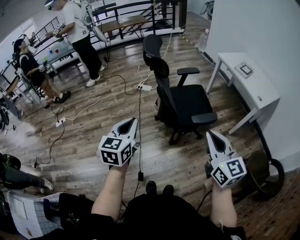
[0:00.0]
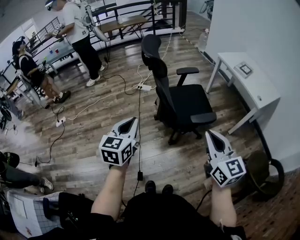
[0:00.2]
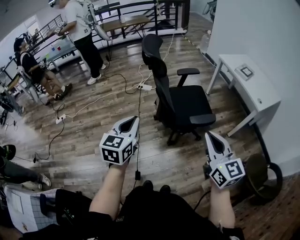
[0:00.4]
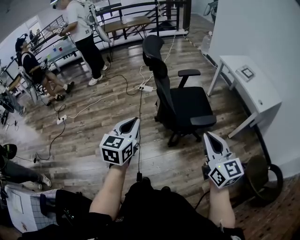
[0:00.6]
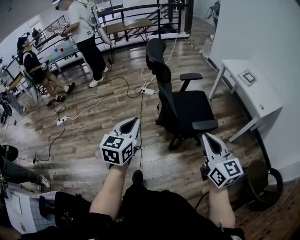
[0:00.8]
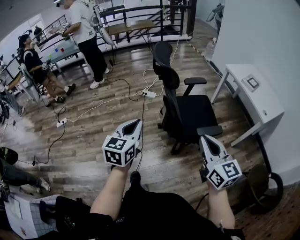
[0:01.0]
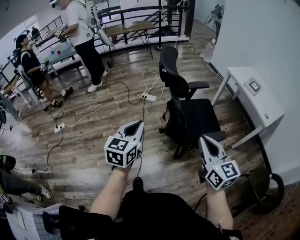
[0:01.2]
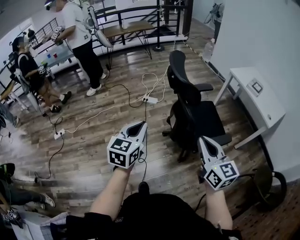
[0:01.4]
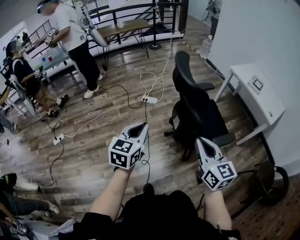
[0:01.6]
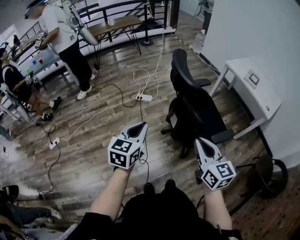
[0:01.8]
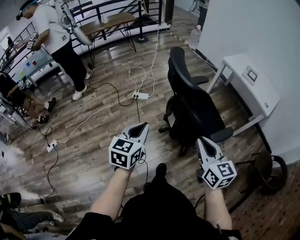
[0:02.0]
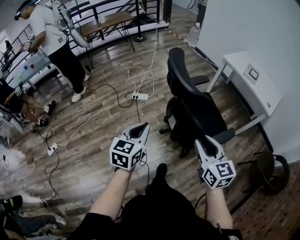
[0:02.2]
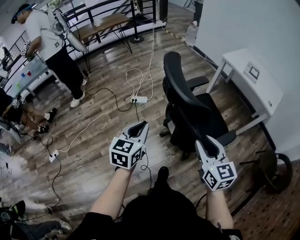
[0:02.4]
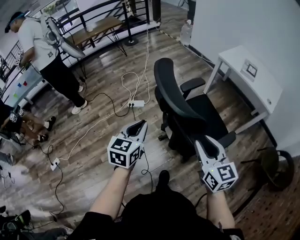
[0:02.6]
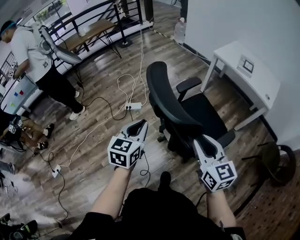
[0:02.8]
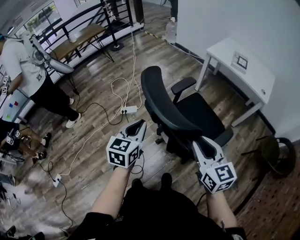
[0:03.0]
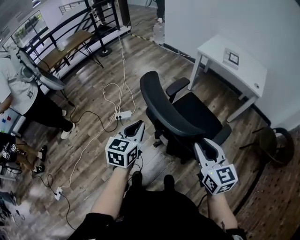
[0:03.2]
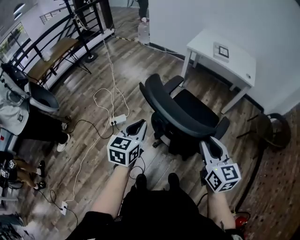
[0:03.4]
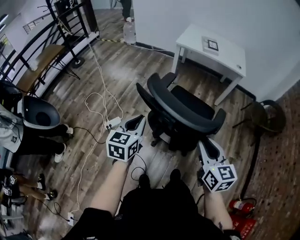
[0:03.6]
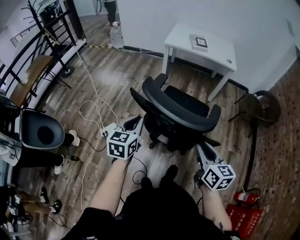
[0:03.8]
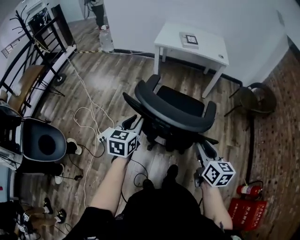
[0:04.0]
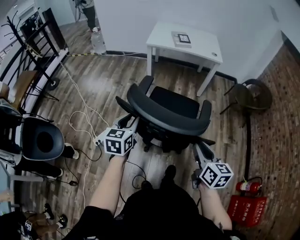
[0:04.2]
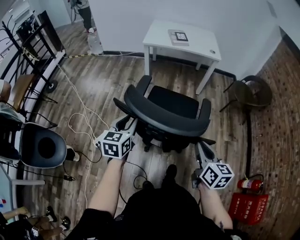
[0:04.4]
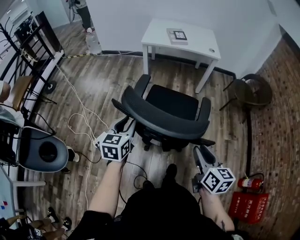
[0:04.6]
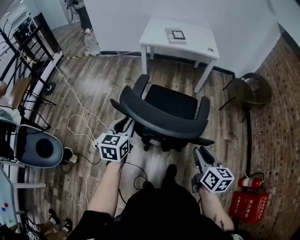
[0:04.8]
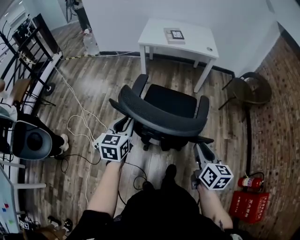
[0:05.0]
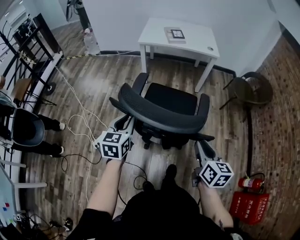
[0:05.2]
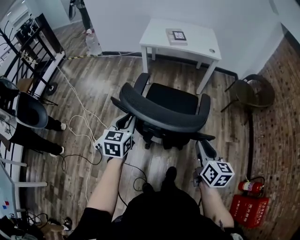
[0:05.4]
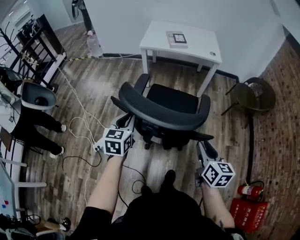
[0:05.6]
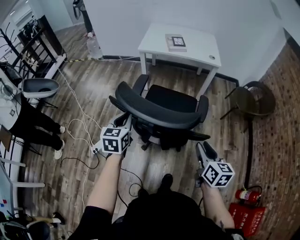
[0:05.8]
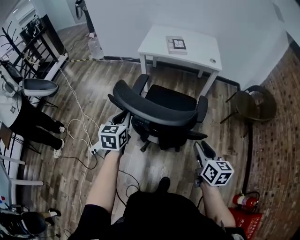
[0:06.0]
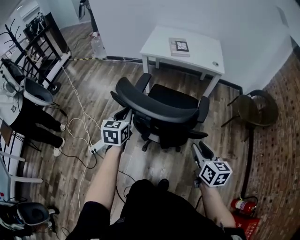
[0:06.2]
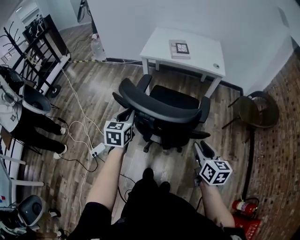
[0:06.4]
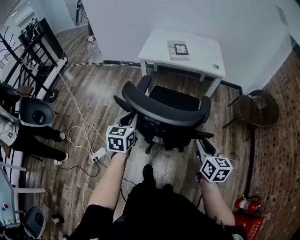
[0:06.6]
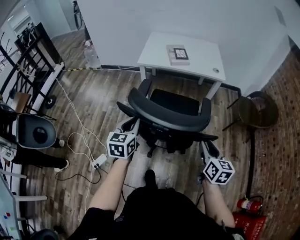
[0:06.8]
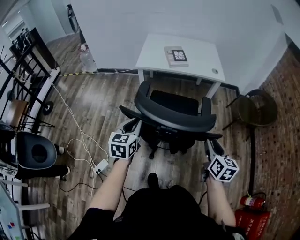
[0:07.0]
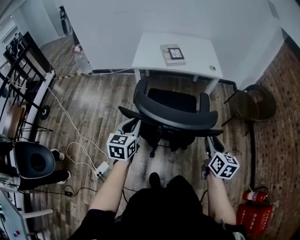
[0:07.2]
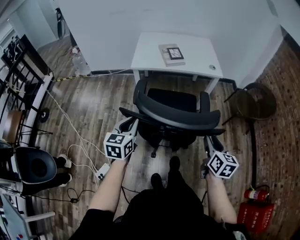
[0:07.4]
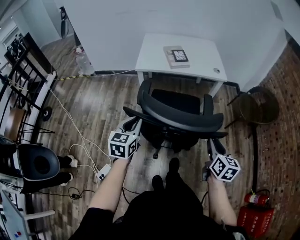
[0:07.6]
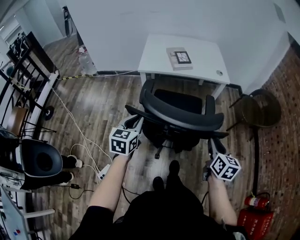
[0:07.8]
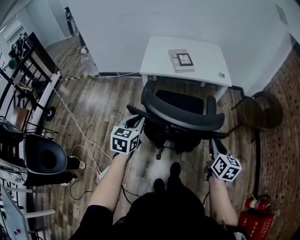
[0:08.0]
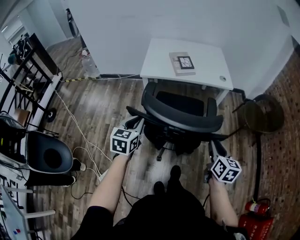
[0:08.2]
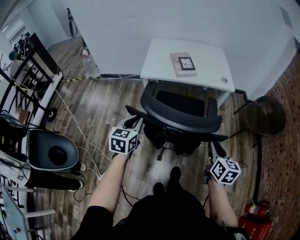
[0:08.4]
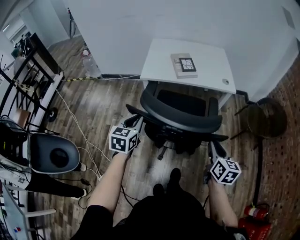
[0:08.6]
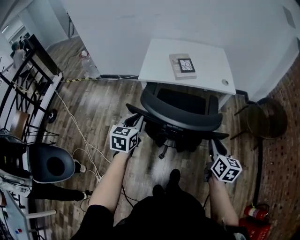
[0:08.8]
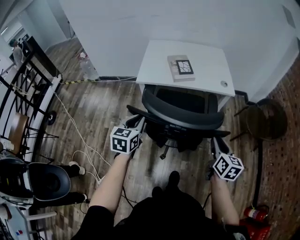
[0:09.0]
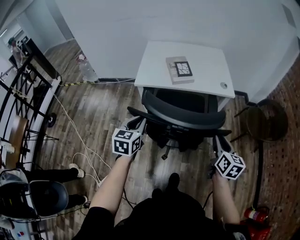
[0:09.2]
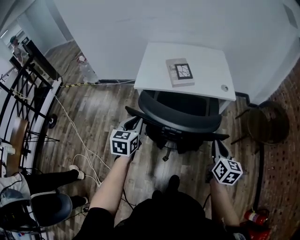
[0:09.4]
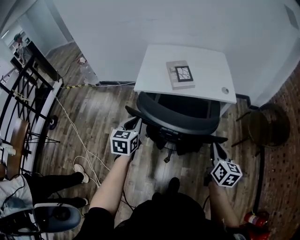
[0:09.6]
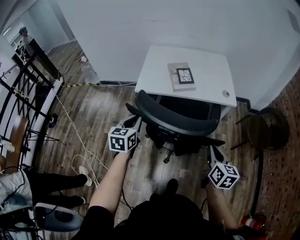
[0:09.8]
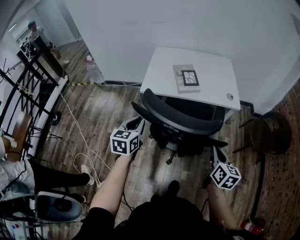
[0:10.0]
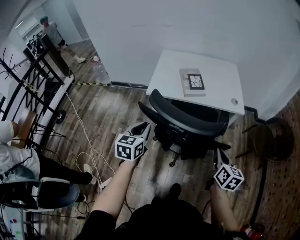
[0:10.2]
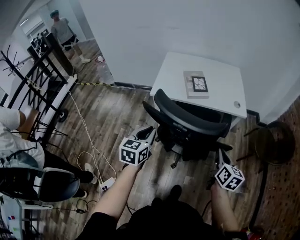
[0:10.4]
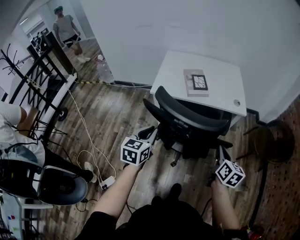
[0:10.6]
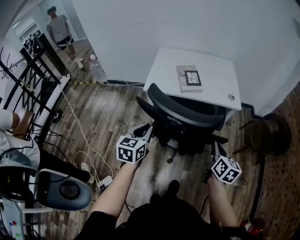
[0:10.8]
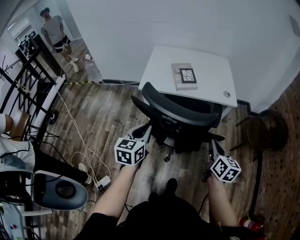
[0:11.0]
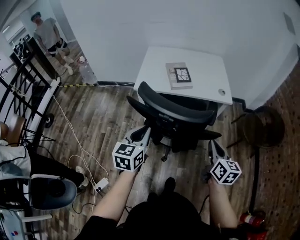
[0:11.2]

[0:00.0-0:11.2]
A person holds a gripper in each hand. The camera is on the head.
0:00.0 to 0:01.6: The left gripper heads forward and to the left, covering about 25 cm. Meanwhile the right gripper goes about 30 cm to the left and forward.
0:01.6 to 0:03.2: Both grippers move forward, approximately 25 cm. The left gripper turns by roughly 20 degrees. Meanwhile the right gripper swivels some 30 degrees, and opens its fingers.
0:03.2 to 0:04.8: The right gripper heads downward, covering approximately 10 cm, and turns by approximately 50 degrees. The left gripper ends up roughly 15 cm from where it was, and rotates approximately 30 degrees.
0:04.8 to 0:06.4: The right gripper moves forward and to the right, some 20 cm. Meanwhile the left gripper travels forward by approximately 20 cm.
0:06.4 to 0:08.0: The right gripper travels forward by approximately 15 cm; the left gripper shifts about 20 cm forward and to the left.
0:08.0 to 0:09.6: Both grippers travel together forward, approximately 20 cm. The right gripper closes its fingers.
0:09.6 to 0:11.2: The left gripper shifts roughly 10 cm backward and to the right.

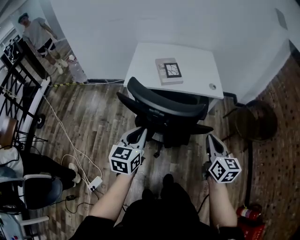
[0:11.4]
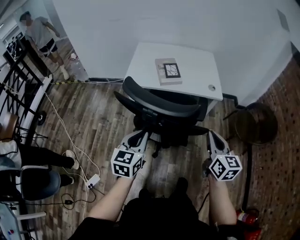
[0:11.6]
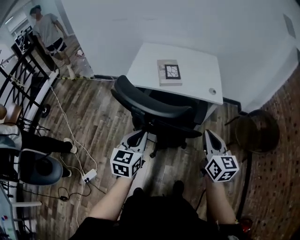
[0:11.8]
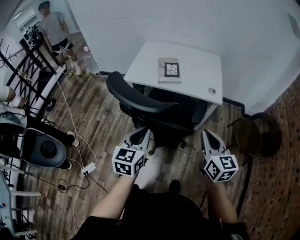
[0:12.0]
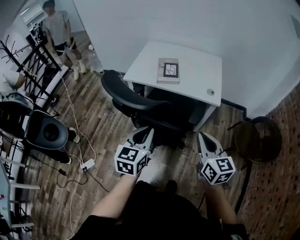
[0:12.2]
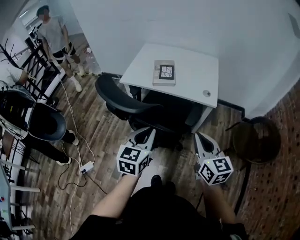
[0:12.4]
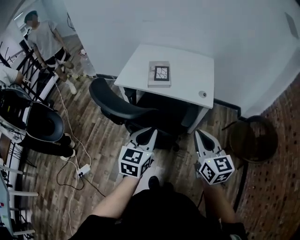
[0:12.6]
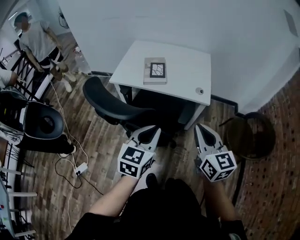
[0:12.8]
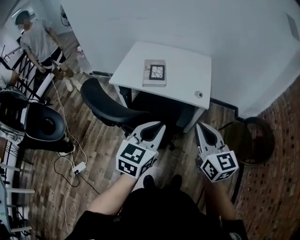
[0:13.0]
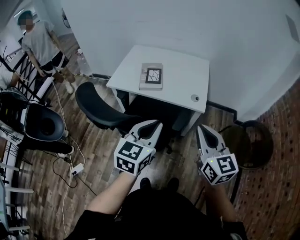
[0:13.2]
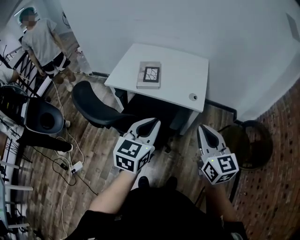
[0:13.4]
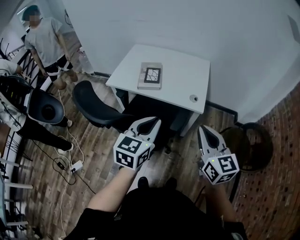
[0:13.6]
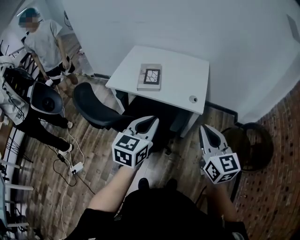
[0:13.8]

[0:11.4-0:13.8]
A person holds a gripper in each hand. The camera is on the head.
0:11.4 to 0:12.6: The left gripper is displaced to the right by roughly 25 cm; the right gripper goes about 15 cm to the right, and swivels approximately 20 degrees.
0:12.6 to 0:13.8: Both grippers move to the right and forward, some 10 cm.

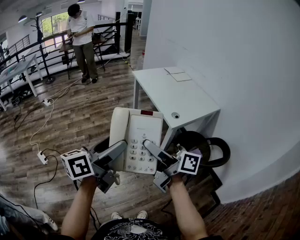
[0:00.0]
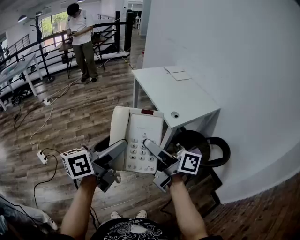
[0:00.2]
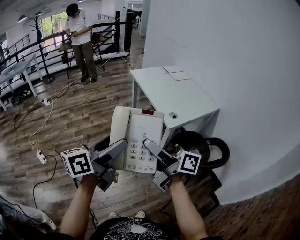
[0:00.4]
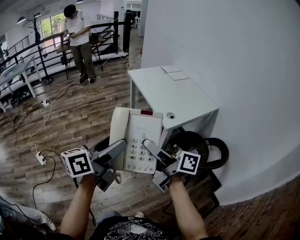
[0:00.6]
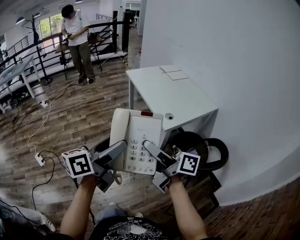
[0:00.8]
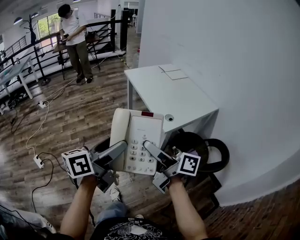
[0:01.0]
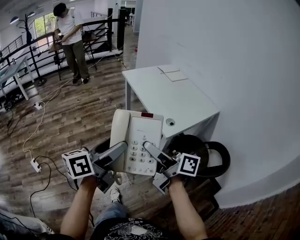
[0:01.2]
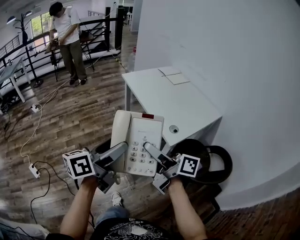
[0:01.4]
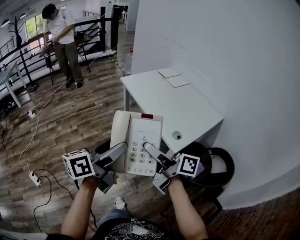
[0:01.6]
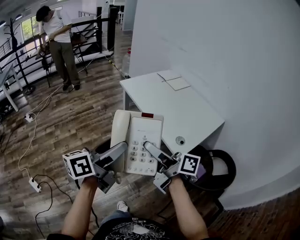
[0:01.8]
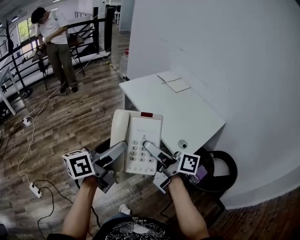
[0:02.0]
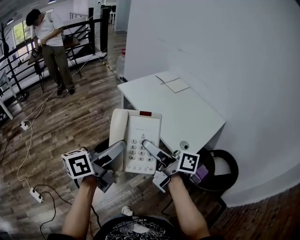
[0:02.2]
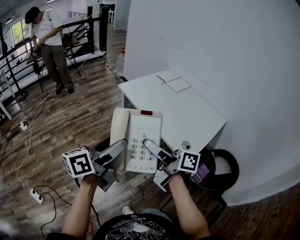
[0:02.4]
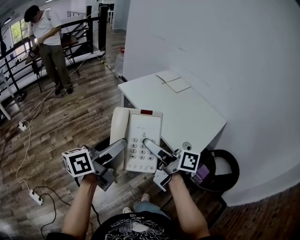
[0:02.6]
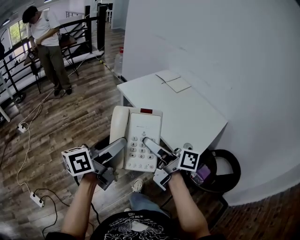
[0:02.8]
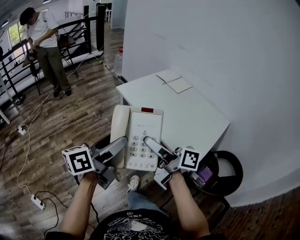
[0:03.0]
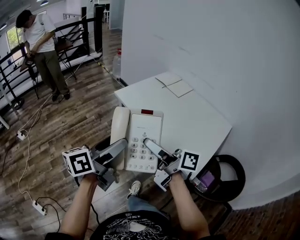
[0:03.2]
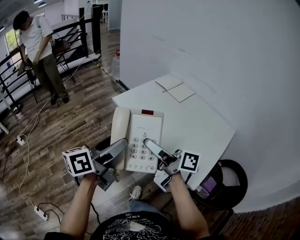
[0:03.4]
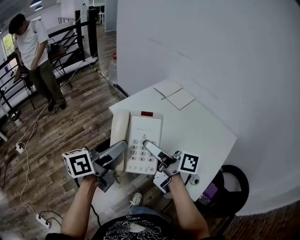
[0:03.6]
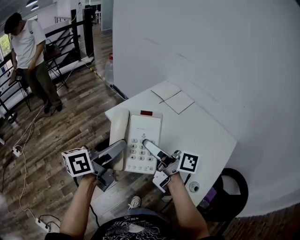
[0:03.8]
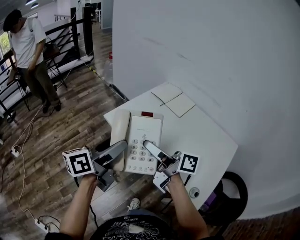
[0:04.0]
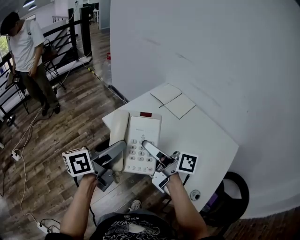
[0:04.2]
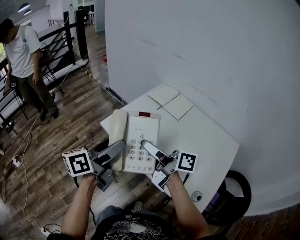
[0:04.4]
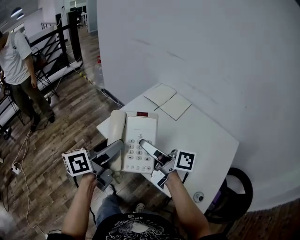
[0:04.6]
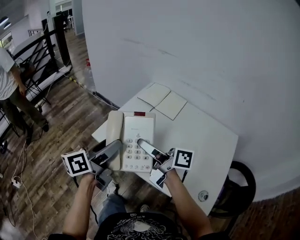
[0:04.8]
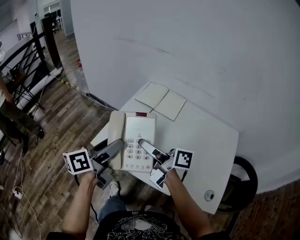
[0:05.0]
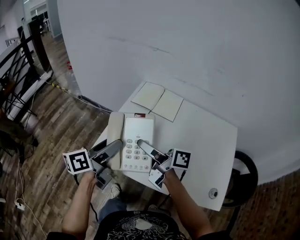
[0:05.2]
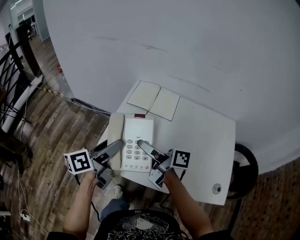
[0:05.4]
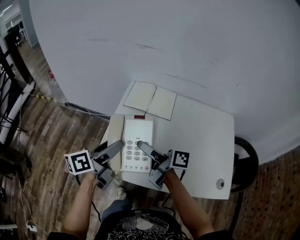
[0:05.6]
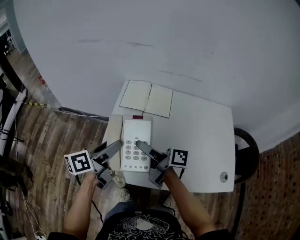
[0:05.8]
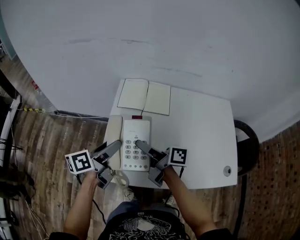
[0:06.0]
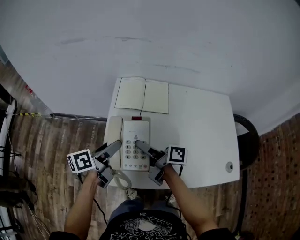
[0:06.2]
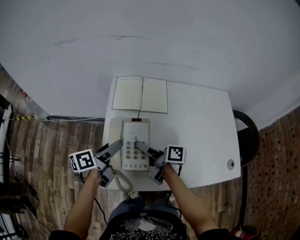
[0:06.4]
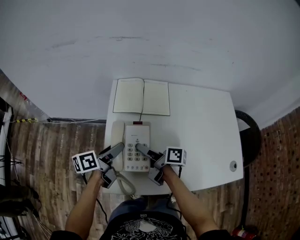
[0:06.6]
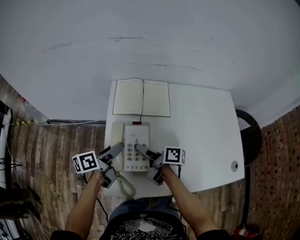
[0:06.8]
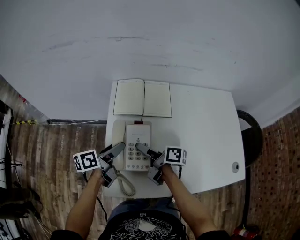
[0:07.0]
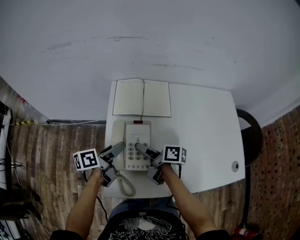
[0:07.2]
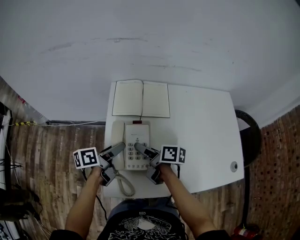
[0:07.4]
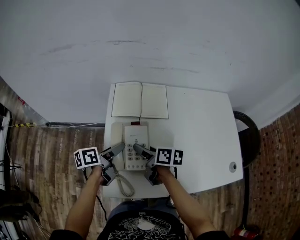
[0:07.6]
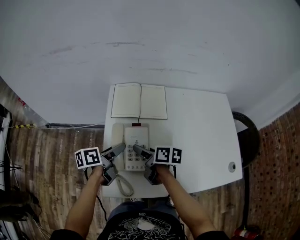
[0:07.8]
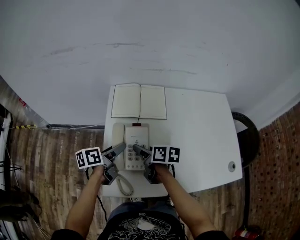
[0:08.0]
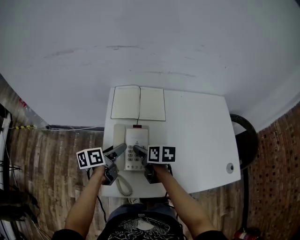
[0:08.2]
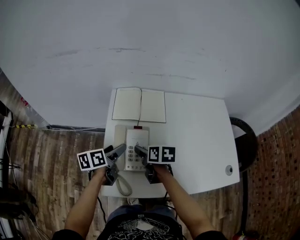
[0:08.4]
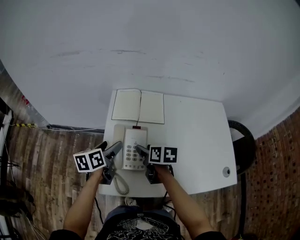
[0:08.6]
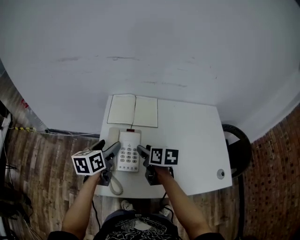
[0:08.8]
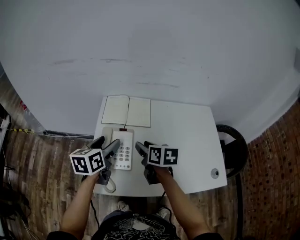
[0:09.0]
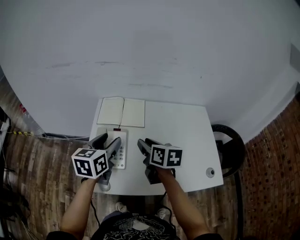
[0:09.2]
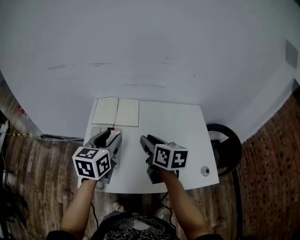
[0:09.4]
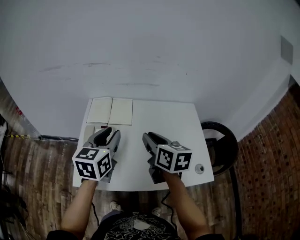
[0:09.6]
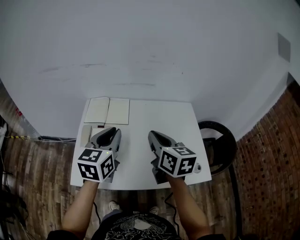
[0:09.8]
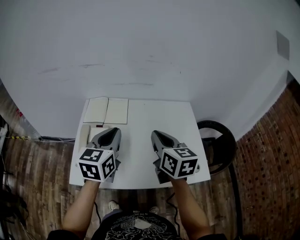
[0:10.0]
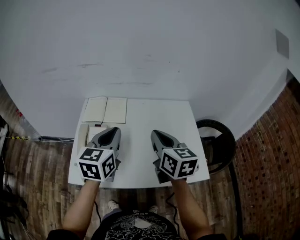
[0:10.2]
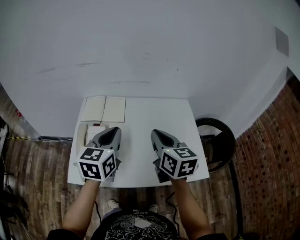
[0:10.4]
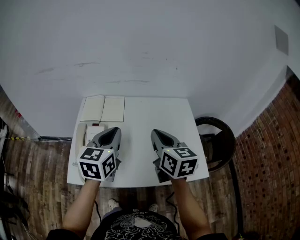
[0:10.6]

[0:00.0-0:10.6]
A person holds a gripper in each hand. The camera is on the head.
0:00.0 to 0:01.6: The grippers both shift forward by approximately 25 cm.
0:01.6 to 0:03.0: The two grippers go roughly 20 cm forward.
0:03.0 to 0:04.6: The grippers both shift forward by roughly 35 cm.
0:04.6 to 0:06.0: The left gripper shifts by about 30 cm, and changes its angle by approximately 40 degrees. The right gripper ends up roughly 25 cm from where it was, and rotates approximately 30 degrees.
0:06.0 to 0:07.6: The grippers both shift downward and forward by roughly 15 cm. The right gripper turns by some 30 degrees.
0:07.6 to 0:09.0: The right gripper travels upward and to the right by roughly 15 cm, and swivels about 30 degrees. Meanwhile the left gripper moves upward, some 15 cm, and changes its angle by some 40 degrees.
0:09.0 to 0:10.6: The grippers both shift to the right and upward by roughly 25 cm. The left gripper changes its angle by approximately 20 degrees, and closes; the right gripper turns by approximately 30 degrees, and closes its fingers.
